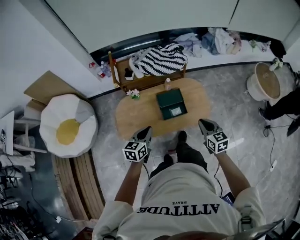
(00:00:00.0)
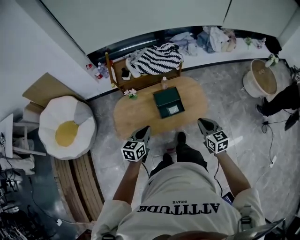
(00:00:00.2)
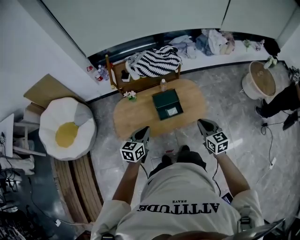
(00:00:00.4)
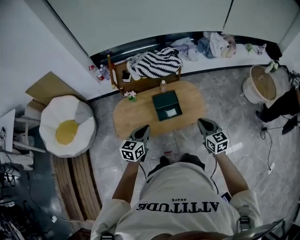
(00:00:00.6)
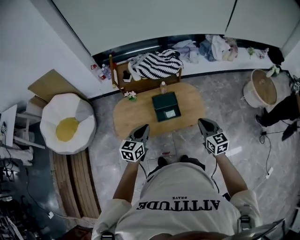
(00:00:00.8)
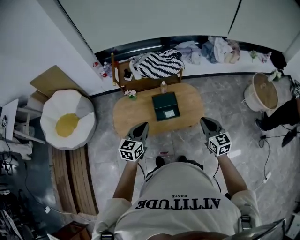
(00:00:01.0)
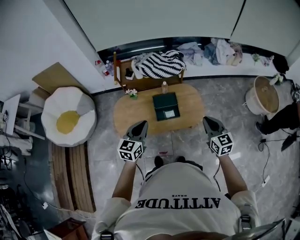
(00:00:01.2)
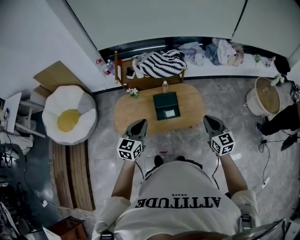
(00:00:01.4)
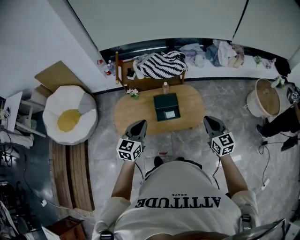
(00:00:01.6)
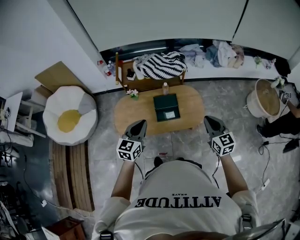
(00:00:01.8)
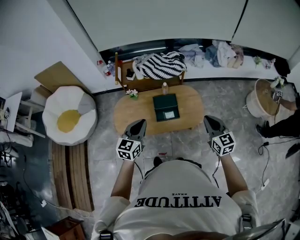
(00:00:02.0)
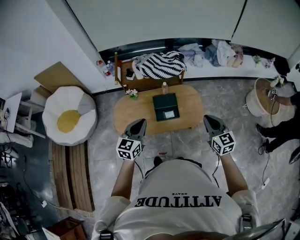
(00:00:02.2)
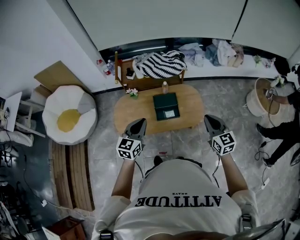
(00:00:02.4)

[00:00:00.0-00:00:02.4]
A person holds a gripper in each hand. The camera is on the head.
00:00:00.0 to 00:00:01.2: The grippers both shift upward and to the right by about 15 cm.
00:00:01.2 to 00:00:02.4: The grippers move only a little.

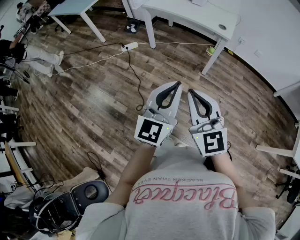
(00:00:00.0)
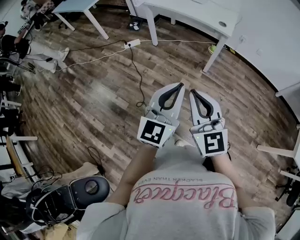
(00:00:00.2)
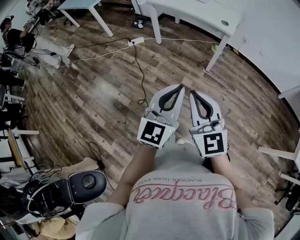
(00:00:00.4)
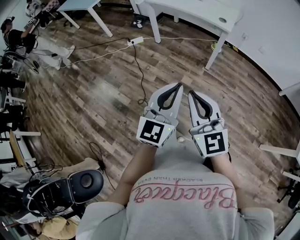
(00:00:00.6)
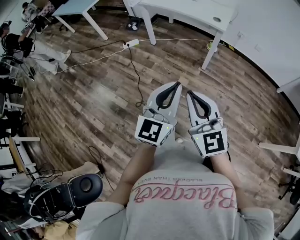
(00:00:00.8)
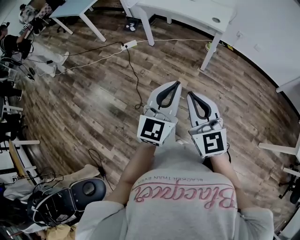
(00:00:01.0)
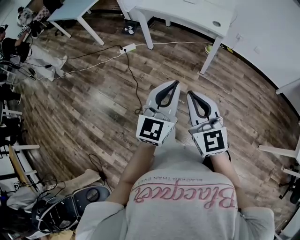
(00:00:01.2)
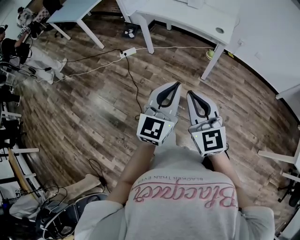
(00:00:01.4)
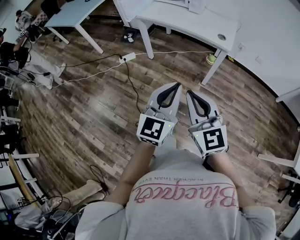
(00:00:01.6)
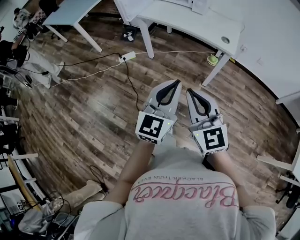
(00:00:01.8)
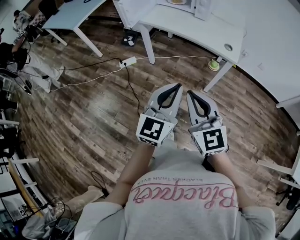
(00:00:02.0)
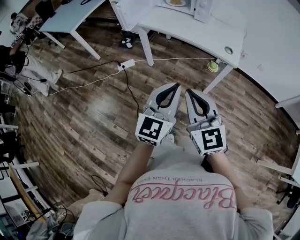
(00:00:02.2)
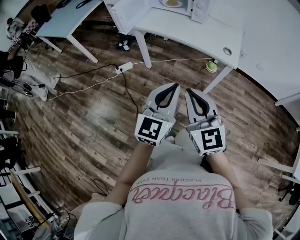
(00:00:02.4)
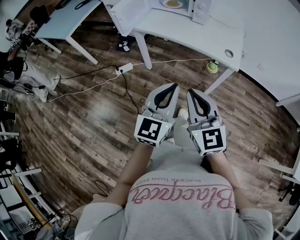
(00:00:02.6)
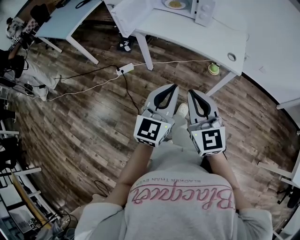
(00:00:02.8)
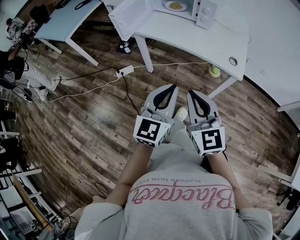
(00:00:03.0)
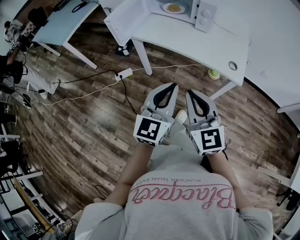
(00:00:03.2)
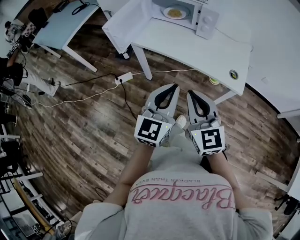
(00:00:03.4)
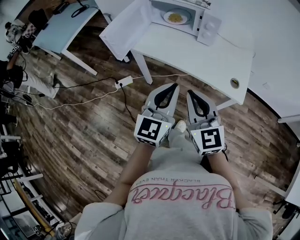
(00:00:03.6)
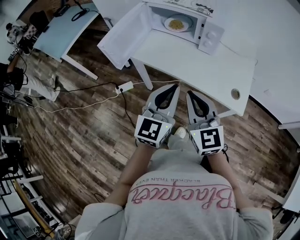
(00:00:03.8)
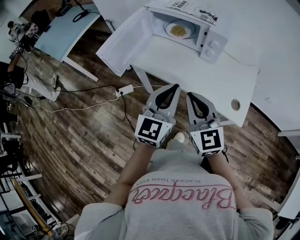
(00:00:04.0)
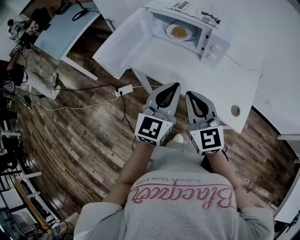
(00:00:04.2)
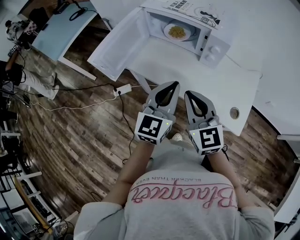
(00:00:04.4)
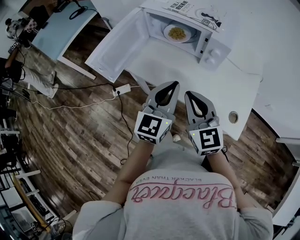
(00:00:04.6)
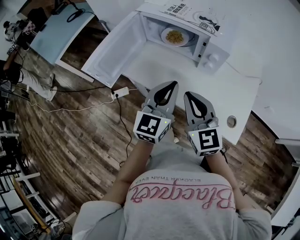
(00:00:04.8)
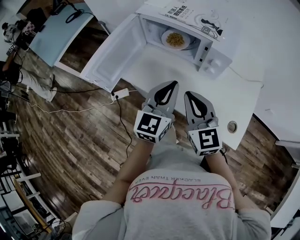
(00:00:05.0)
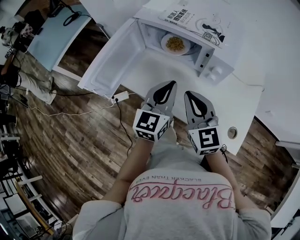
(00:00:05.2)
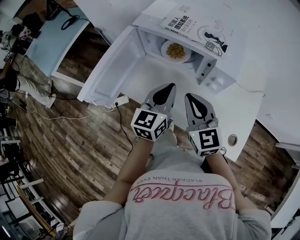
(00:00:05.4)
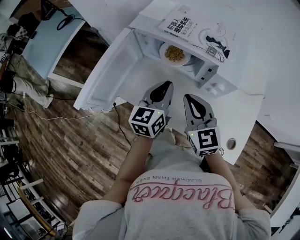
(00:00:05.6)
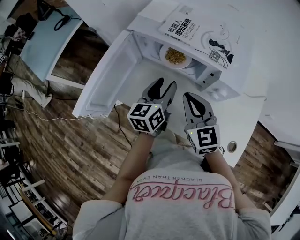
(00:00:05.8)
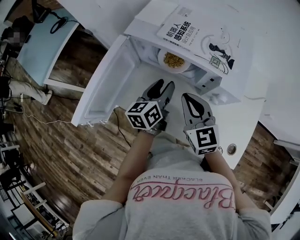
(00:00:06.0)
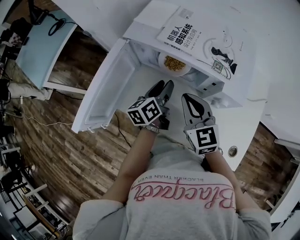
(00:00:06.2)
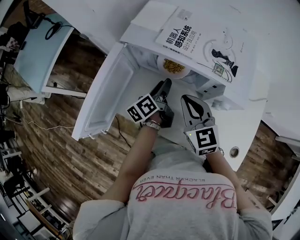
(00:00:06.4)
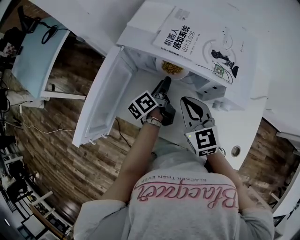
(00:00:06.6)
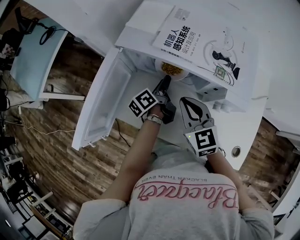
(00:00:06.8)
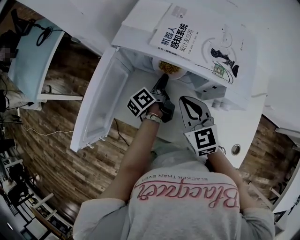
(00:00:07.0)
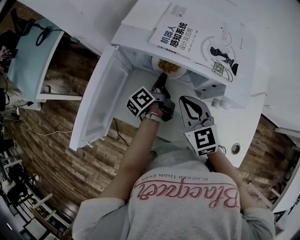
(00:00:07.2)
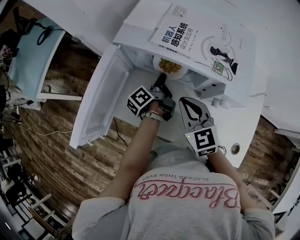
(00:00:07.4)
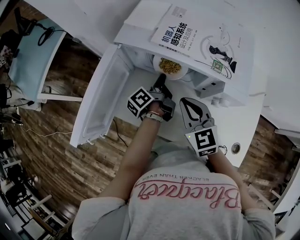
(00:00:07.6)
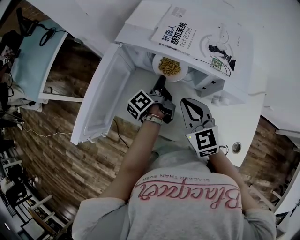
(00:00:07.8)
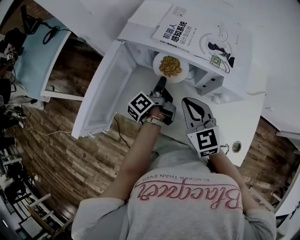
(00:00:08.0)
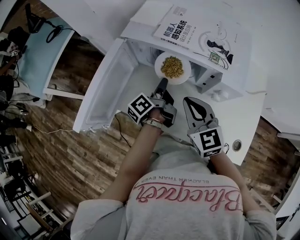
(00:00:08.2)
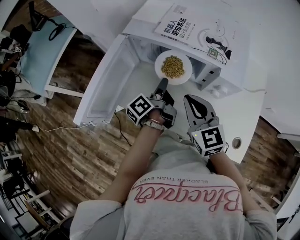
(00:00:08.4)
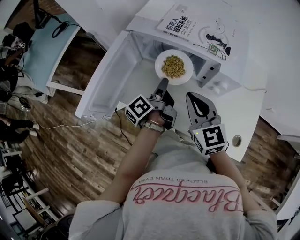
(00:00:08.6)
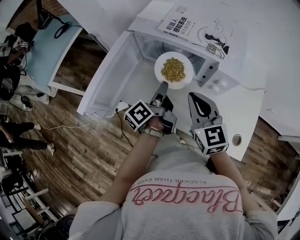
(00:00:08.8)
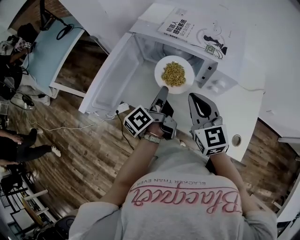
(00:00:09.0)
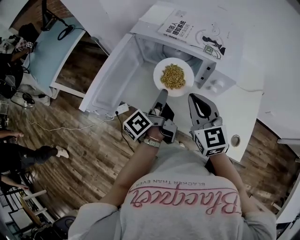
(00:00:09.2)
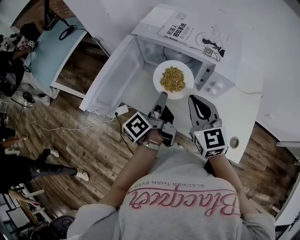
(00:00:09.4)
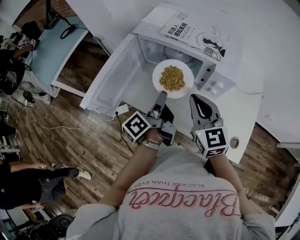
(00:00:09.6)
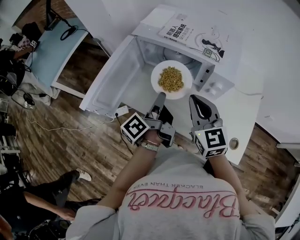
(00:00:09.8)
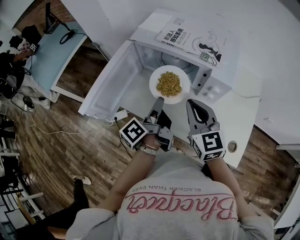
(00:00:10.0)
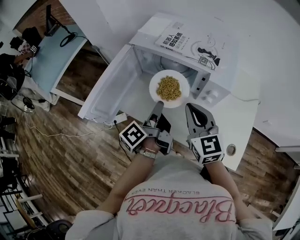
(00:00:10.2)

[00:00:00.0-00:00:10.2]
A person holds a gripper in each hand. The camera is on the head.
00:00:00.0 to 00:00:01.4: The grippers both shift forward by approximately 5 cm.
00:00:01.4 to 00:00:03.0: The grippers both shift forward by some 30 cm.
00:00:03.0 to 00:00:04.4: Both grippers move forward, approximately 30 cm.
00:00:04.4 to 00:00:05.8: Both grippers travel together forward, about 20 cm. The left gripper turns by some 30 degrees, and opens.
00:00:05.8 to 00:00:07.2: The left gripper heads forward and downward, covering some 15 cm, twists about 50 degrees counterclockwise, seen from behind, and closes its fingers. The right gripper moves forward, some 5 cm.
00:00:07.2 to 00:00:08.8: The right gripper travels backward and upward by some 10 cm. Meanwhile the left gripper shifts about 15 cm backward and upward.
00:00:08.8 to 00:00:10.2: The left gripper goes approximately 5 cm backward.

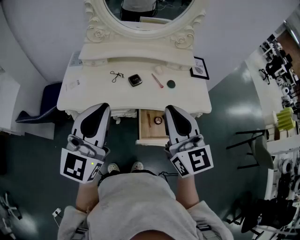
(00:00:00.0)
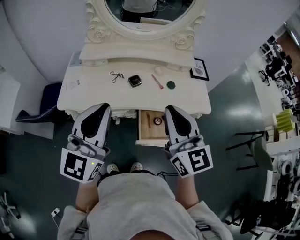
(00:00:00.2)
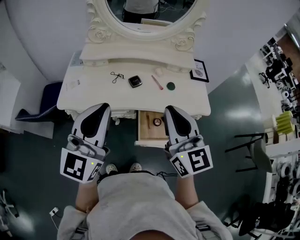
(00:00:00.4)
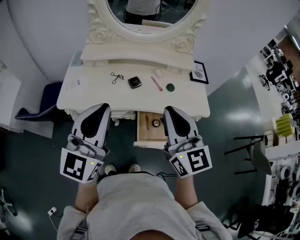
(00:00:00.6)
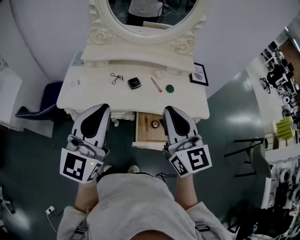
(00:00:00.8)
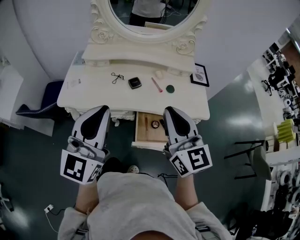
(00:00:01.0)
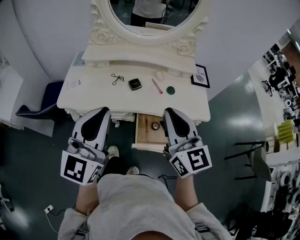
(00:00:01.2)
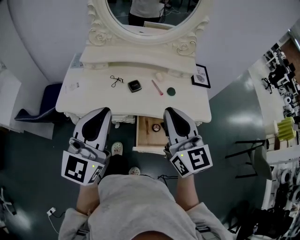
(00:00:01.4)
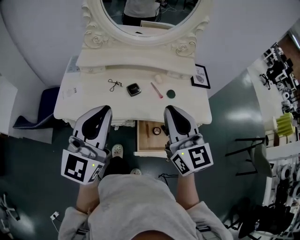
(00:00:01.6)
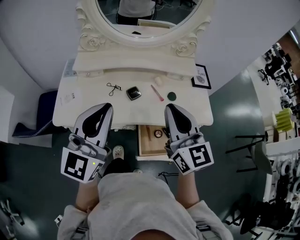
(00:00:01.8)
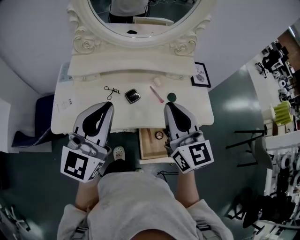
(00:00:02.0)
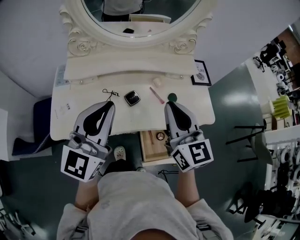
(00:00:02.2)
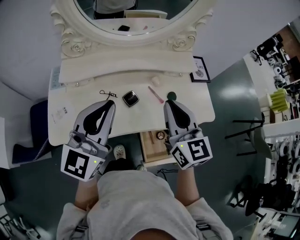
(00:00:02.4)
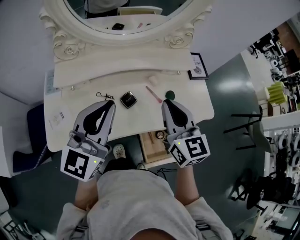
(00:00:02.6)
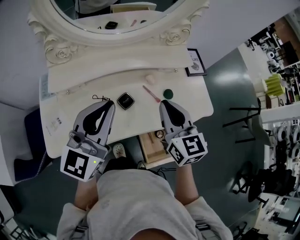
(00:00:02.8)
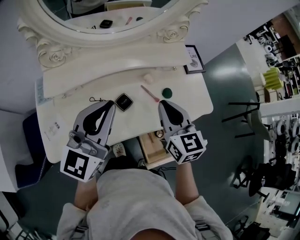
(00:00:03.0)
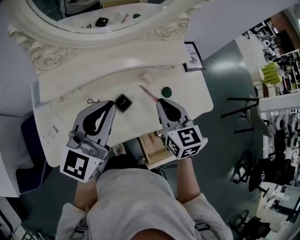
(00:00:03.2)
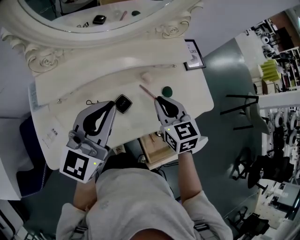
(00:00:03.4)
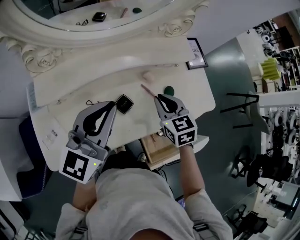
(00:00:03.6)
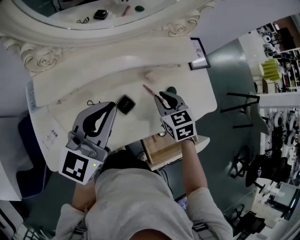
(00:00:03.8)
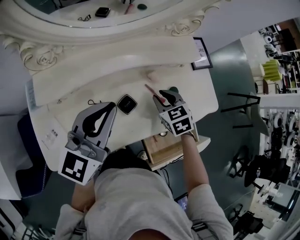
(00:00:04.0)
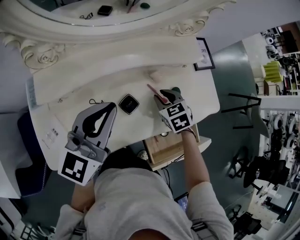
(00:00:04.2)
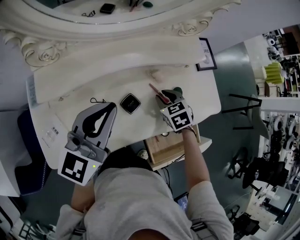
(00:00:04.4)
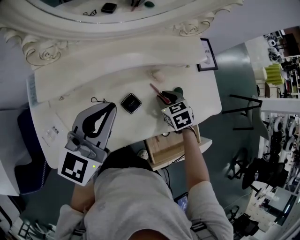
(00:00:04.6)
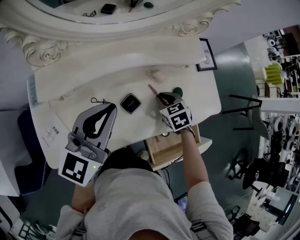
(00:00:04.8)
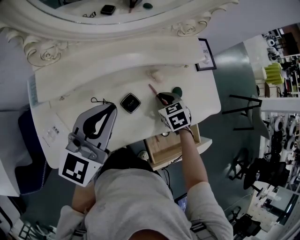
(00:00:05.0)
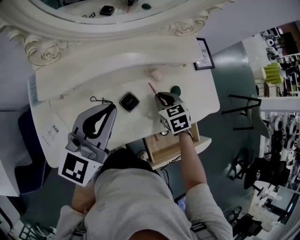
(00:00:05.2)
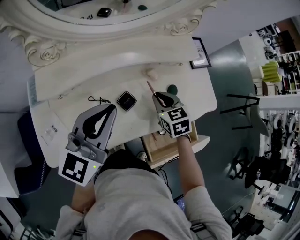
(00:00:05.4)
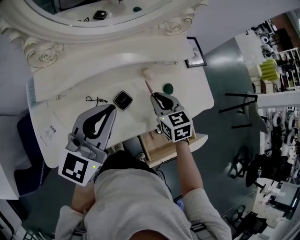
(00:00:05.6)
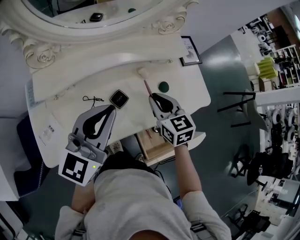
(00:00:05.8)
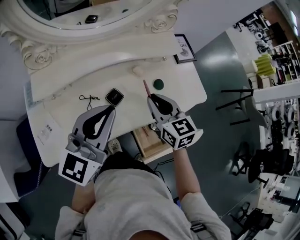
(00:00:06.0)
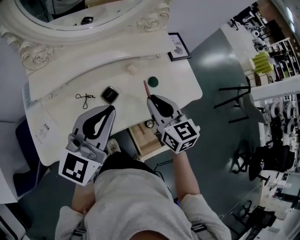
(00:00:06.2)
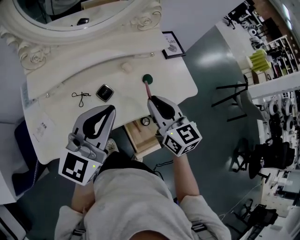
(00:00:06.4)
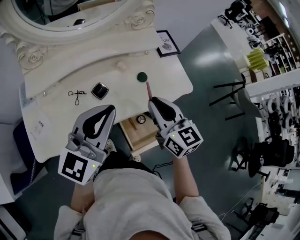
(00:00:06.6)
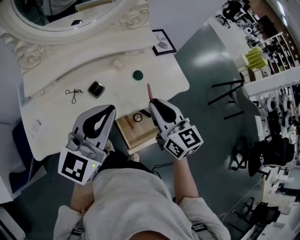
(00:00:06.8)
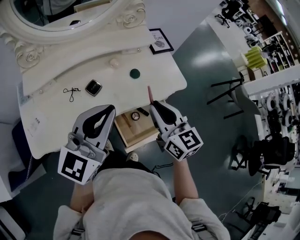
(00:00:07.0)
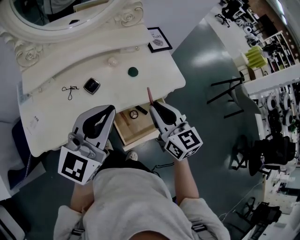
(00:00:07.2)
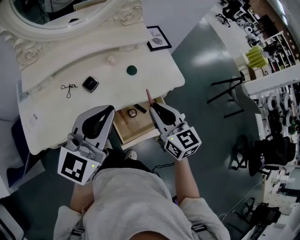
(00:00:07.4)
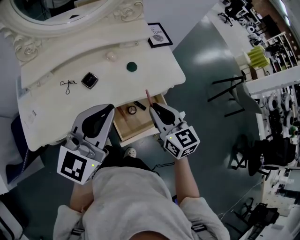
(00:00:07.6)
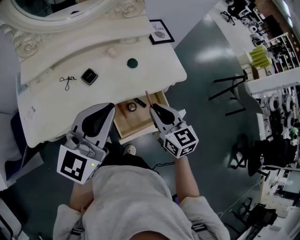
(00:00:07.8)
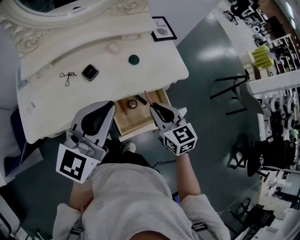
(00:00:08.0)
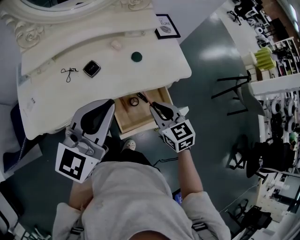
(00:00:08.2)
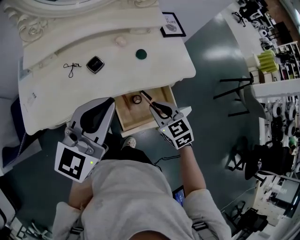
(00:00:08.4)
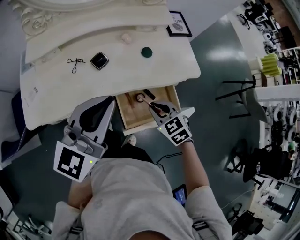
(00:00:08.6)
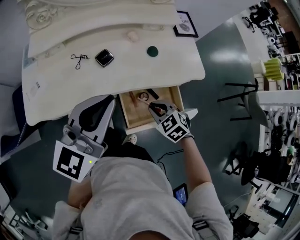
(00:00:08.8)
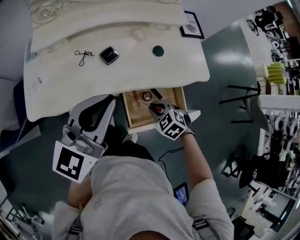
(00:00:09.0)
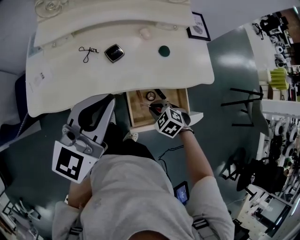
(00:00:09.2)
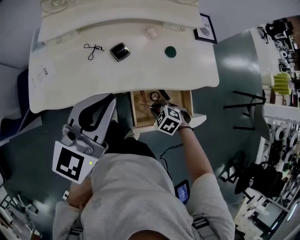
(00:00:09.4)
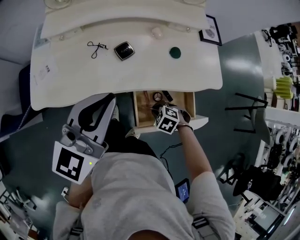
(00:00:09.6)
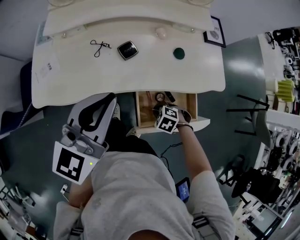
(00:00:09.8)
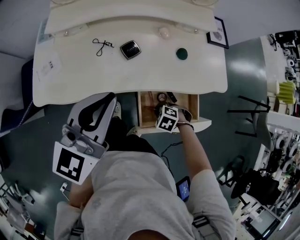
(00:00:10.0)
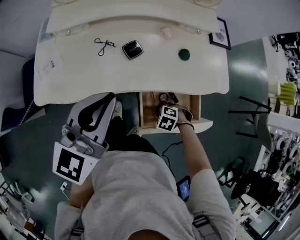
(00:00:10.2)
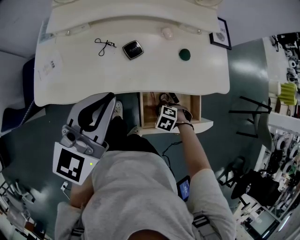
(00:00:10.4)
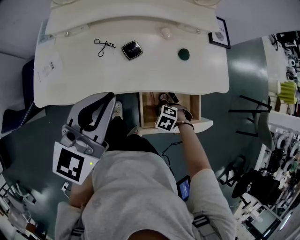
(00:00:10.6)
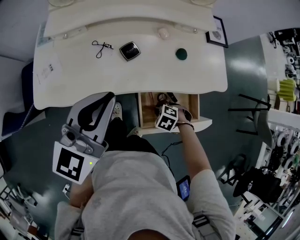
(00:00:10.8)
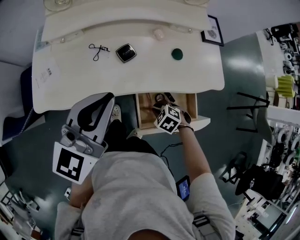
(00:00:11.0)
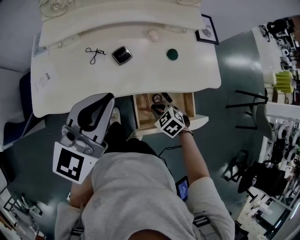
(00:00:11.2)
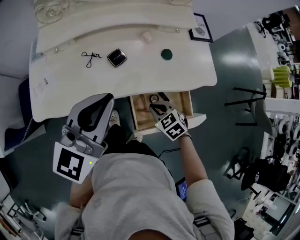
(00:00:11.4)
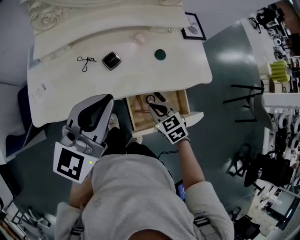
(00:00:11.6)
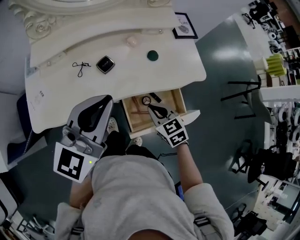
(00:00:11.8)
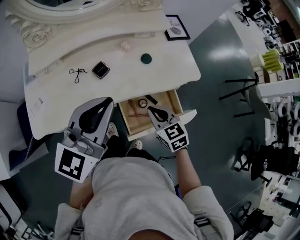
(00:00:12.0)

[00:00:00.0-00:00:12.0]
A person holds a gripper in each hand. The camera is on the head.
00:00:00.0 to 00:00:01.6: Both grippers travel together forward, roughly 5 cm.
00:00:01.6 to 00:00:03.0: The right gripper is displaced forward and downward by about 20 cm, and rotates roughly 30 degrees. Meanwhile the left gripper is displaced forward by some 20 cm, and turns by roughly 20 degrees.
00:00:03.0 to 00:00:04.4: The left gripper travels downward by approximately 10 cm, while the right gripper heads downward, covering some 20 cm, and tips its fingers downward by about 40 degrees.
00:00:04.4 to 00:00:06.0: The right gripper goes roughly 15 cm upward and backward, and points its fingers about 30 degrees further upward; the left gripper moves backward and to the right, some 10 cm.
00:00:06.0 to 00:00:07.6: The grippers both shift to the right and backward by roughly 15 cm.
00:00:07.6 to 00:00:09.0: The right gripper moves downward, approximately 20 cm, and points its fingers some 40 degrees further downward. The left gripper travels to the left by approximately 5 cm.
00:00:09.0 to 00:00:10.4: The left gripper changes place by approximately 5 cm. Meanwhile the right gripper shifts approximately 10 cm downward, and rotates some 30 degrees.
00:00:10.4 to 00:00:12.0: The right gripper shifts roughly 20 cm upward, and tilts its fingers about 50 degrees upward, while the left gripper shifts by some 10 cm.
